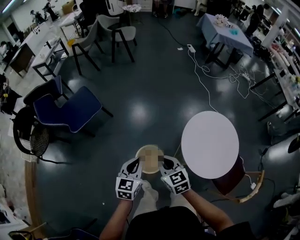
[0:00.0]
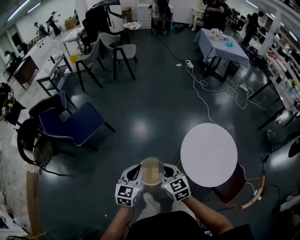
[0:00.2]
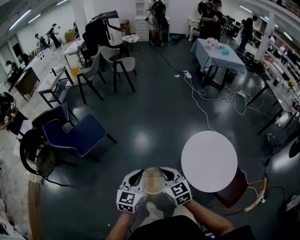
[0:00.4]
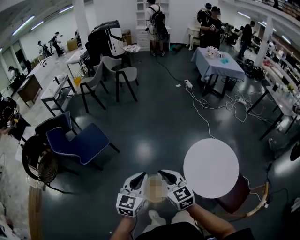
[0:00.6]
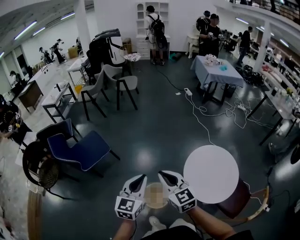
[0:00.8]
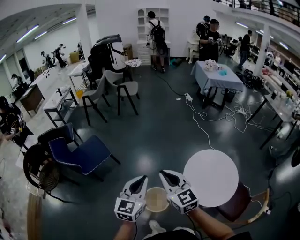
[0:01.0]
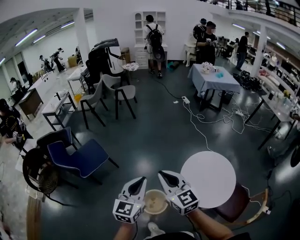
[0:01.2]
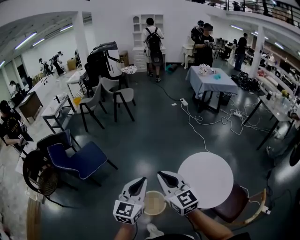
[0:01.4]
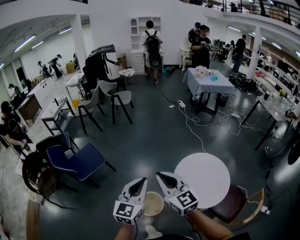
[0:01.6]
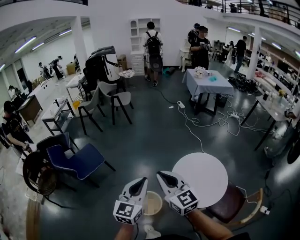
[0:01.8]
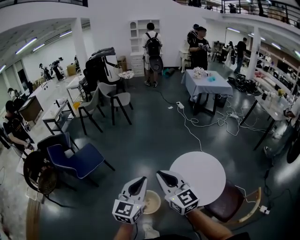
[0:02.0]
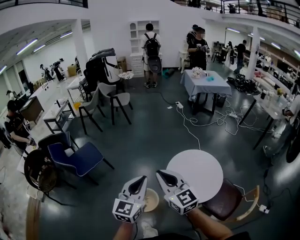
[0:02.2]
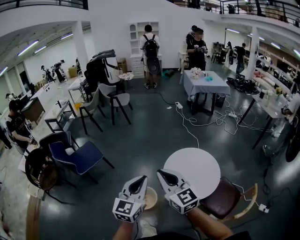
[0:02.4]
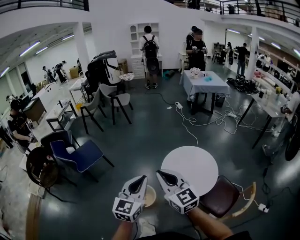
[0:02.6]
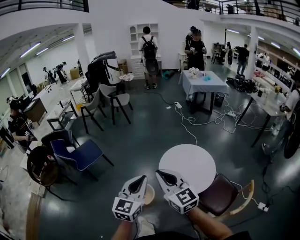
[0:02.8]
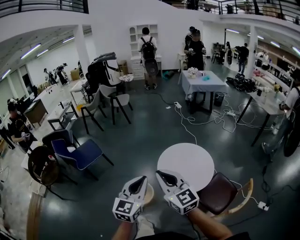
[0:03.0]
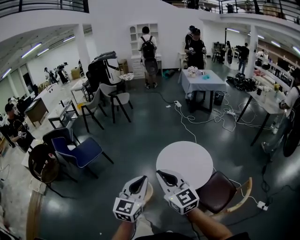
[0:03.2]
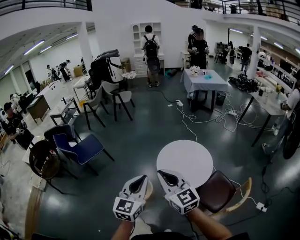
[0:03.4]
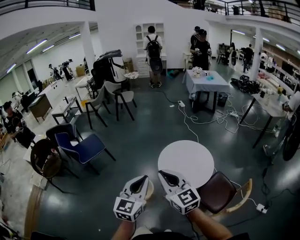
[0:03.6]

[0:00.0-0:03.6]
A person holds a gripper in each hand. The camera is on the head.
0:00.0 to 0:01.8: The left gripper is displaced upward and to the right by some 30 cm, and rotates about 30 degrees. Meanwhile the right gripper travels upward by about 30 cm, and points its fingers some 30 degrees further upward.
0:01.8 to 0:03.6: Both grippers travel together backward and to the right, some 30 cm.

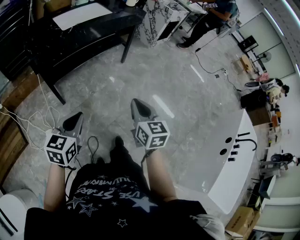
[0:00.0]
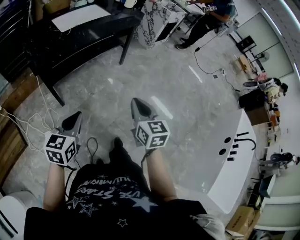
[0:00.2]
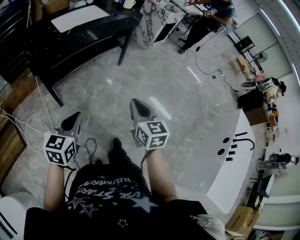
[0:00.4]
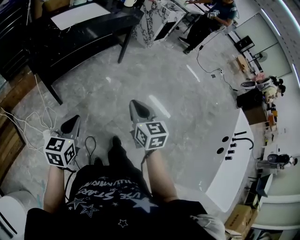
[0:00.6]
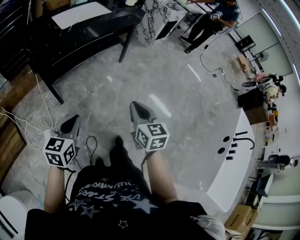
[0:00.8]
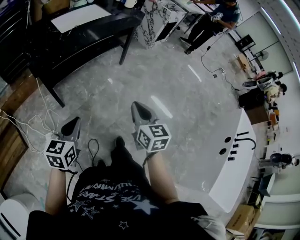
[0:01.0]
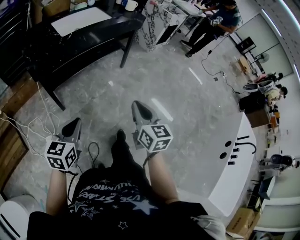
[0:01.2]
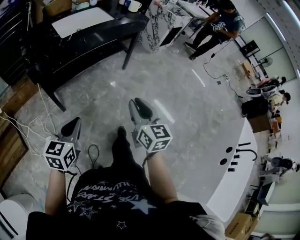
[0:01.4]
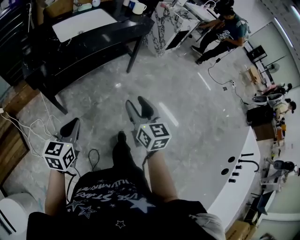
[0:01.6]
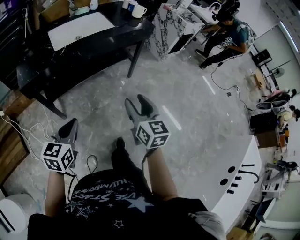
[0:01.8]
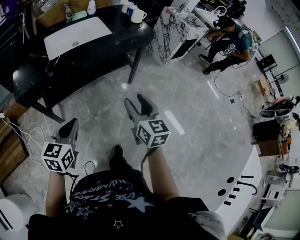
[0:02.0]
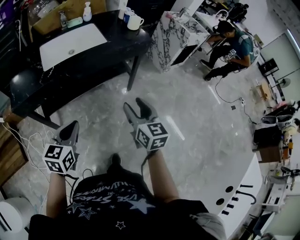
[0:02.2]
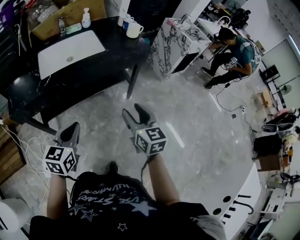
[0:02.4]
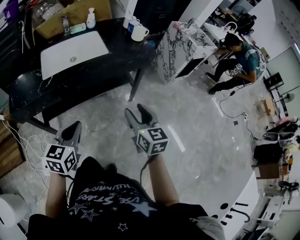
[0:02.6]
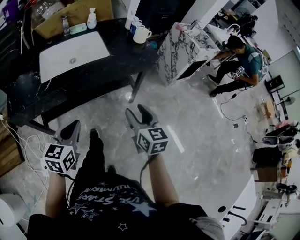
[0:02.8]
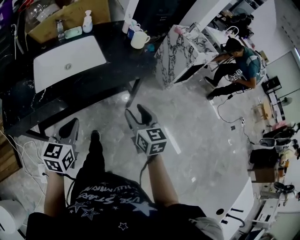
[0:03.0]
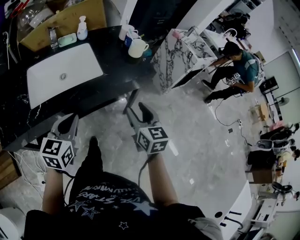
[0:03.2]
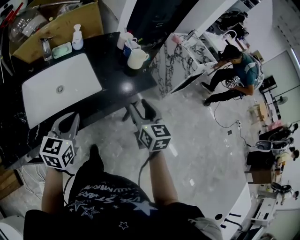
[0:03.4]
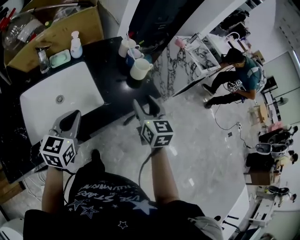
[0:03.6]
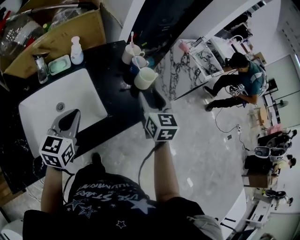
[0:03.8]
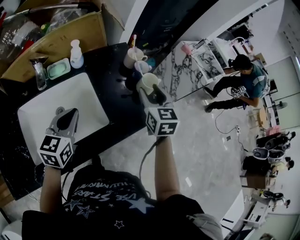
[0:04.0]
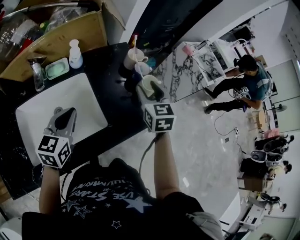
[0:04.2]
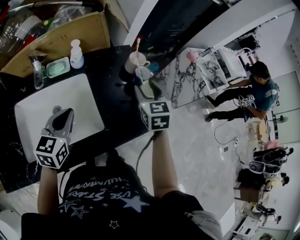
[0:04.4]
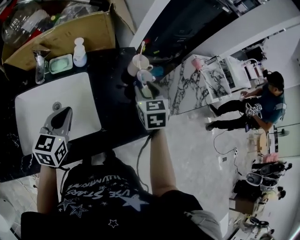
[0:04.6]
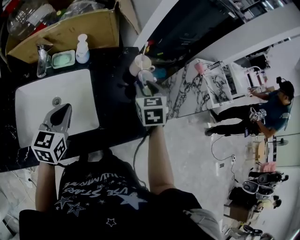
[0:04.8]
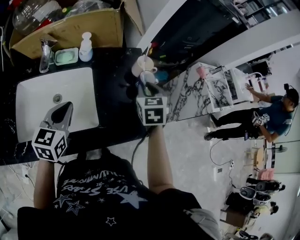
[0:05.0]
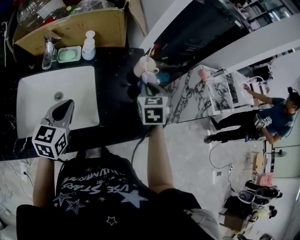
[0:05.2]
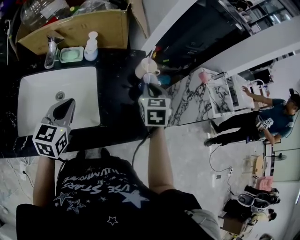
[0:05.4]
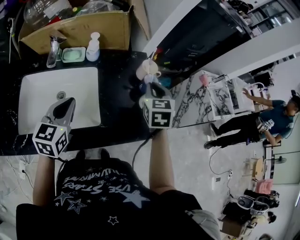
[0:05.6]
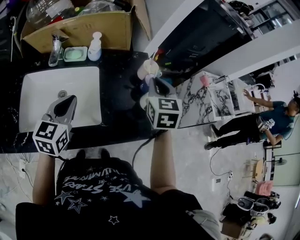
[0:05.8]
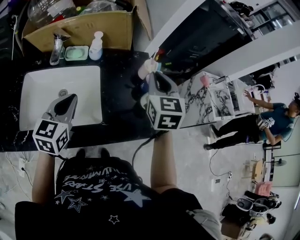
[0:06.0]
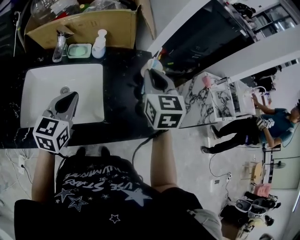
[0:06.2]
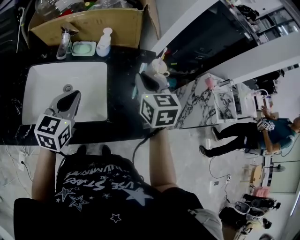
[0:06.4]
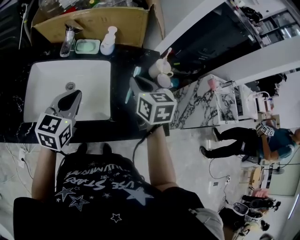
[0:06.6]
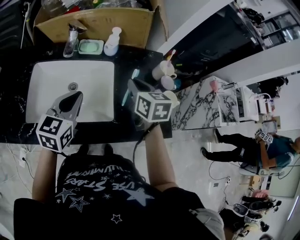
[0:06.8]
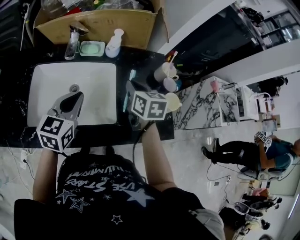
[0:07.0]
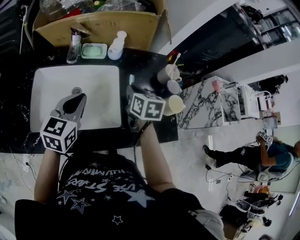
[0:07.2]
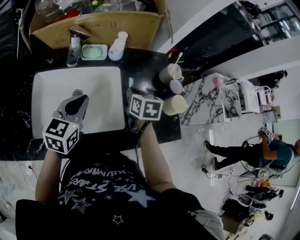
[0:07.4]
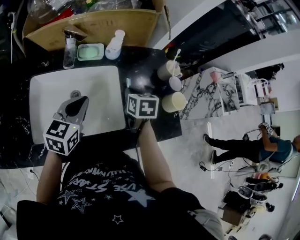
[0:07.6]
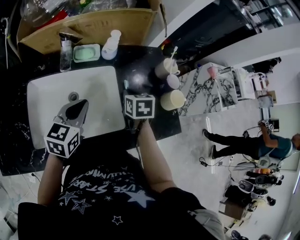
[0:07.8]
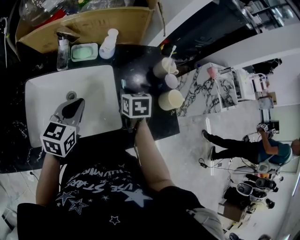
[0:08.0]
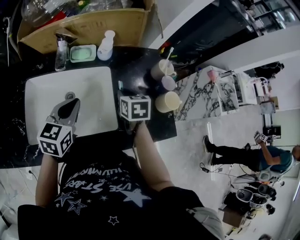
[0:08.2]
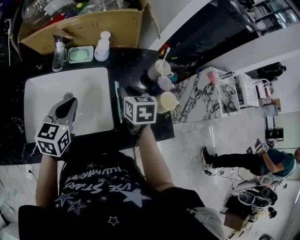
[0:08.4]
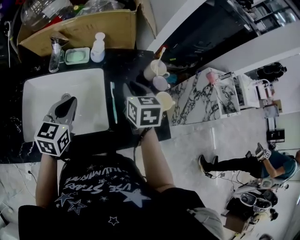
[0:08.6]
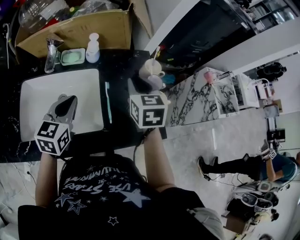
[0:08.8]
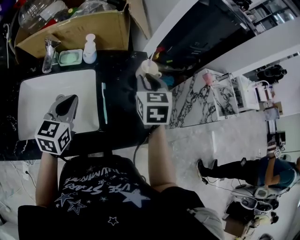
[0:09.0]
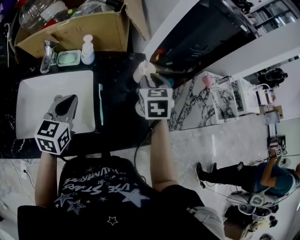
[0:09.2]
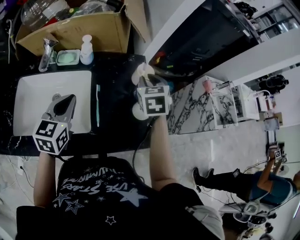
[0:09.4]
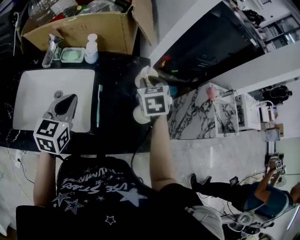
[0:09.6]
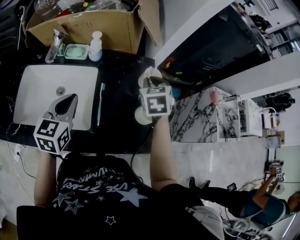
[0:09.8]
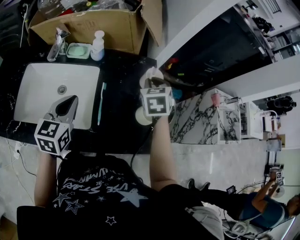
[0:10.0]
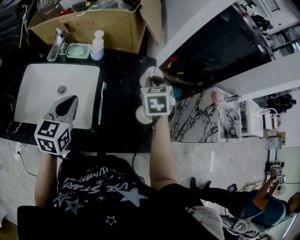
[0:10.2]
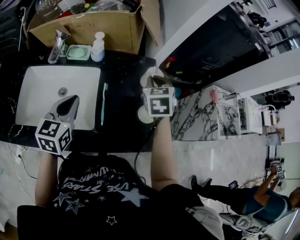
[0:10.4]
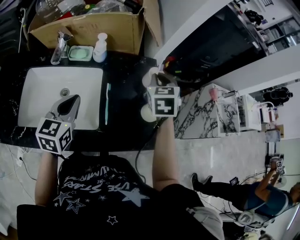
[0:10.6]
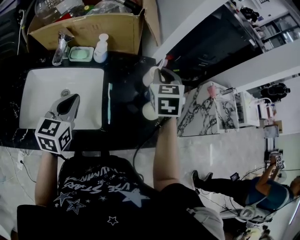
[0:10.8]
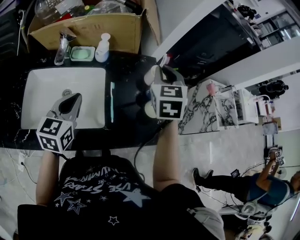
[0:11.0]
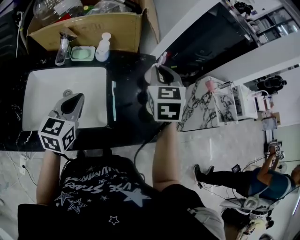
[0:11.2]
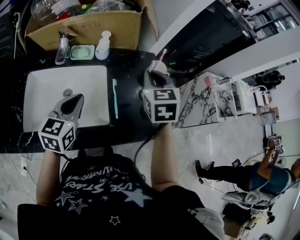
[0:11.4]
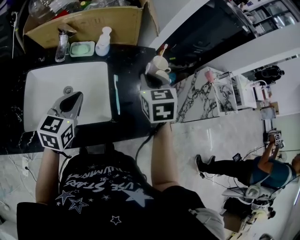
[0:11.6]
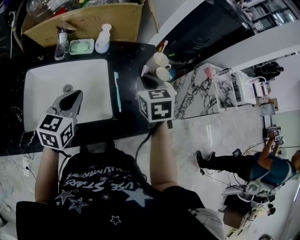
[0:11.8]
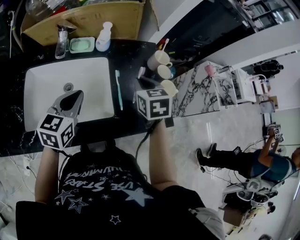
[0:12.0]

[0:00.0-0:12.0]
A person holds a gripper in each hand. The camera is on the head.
0:00.0 to 0:01.6: The two grippers go some 15 cm forward. The right gripper opens up.
0:01.6 to 0:03.0: The grippers both shift forward by approximately 35 cm.
0:03.0 to 0:04.4: The two grippers go approximately 40 cm forward. The right gripper swivels some 20 degrees.
0:04.4 to 0:06.0: The right gripper shifts about 10 cm upward, and closes its fingers.
0:06.0 to 0:07.6: The left gripper travels to the left by some 5 cm; the right gripper heads downward and to the left, covering approximately 25 cm, and turns by about 40 degrees.
0:07.6 to 0:09.0: The right gripper heads upward and to the right, covering roughly 20 cm, and turns by approximately 30 degrees; the left gripper shifts about 10 cm to the right.
0:09.0 to 0:10.4: The right gripper heads forward, covering about 5 cm.
0:10.4 to 0:12.0: The left gripper heads to the left, covering roughly 5 cm, while the right gripper moves backward and to the left, about 15 cm, and goes upward and returns, some 10 cm each way.

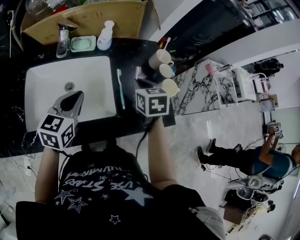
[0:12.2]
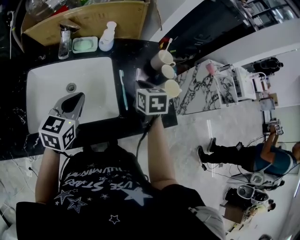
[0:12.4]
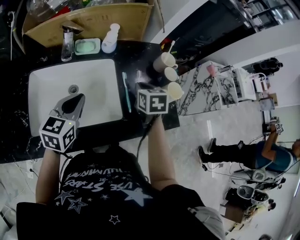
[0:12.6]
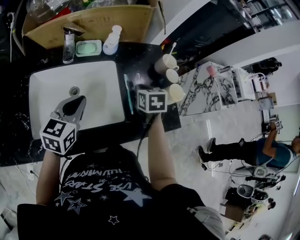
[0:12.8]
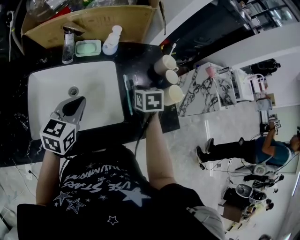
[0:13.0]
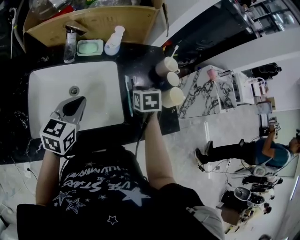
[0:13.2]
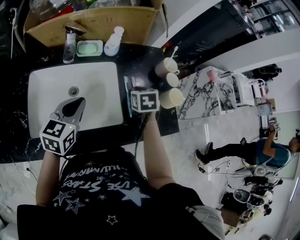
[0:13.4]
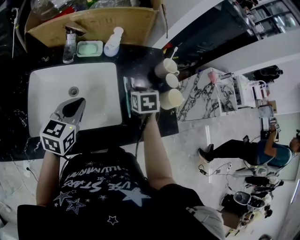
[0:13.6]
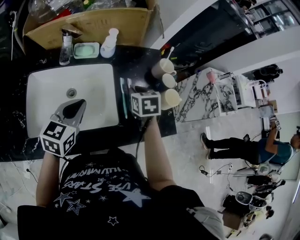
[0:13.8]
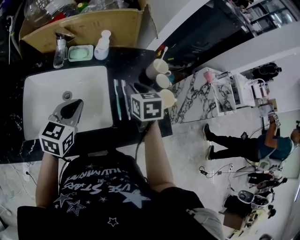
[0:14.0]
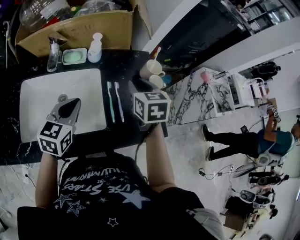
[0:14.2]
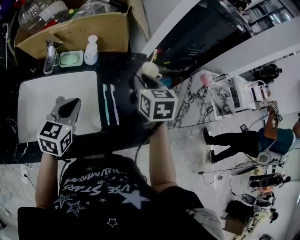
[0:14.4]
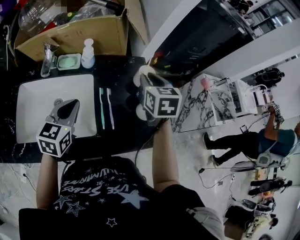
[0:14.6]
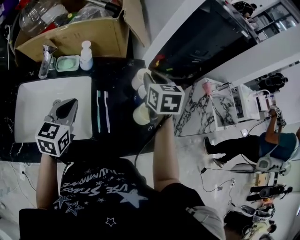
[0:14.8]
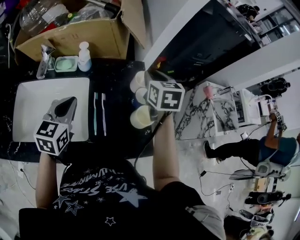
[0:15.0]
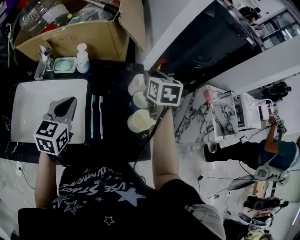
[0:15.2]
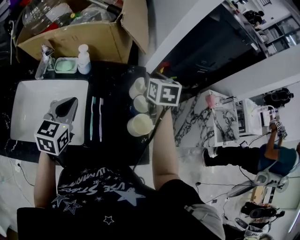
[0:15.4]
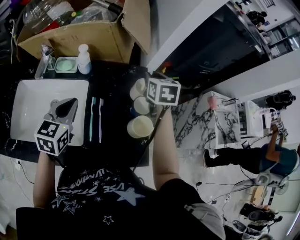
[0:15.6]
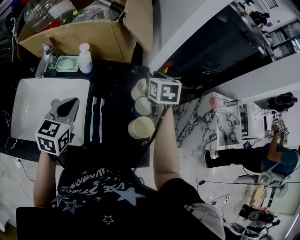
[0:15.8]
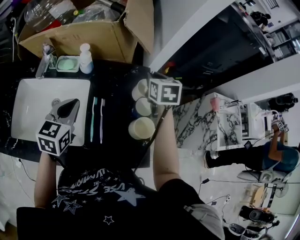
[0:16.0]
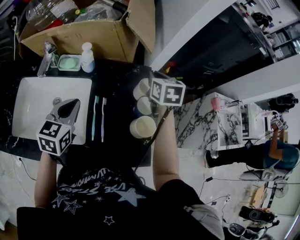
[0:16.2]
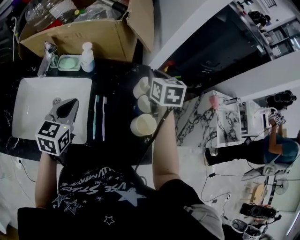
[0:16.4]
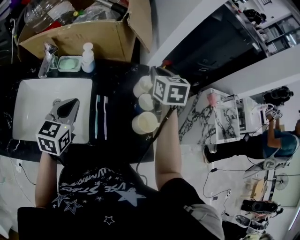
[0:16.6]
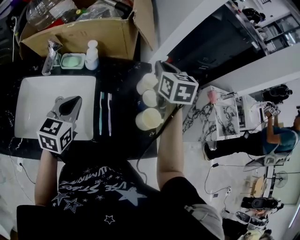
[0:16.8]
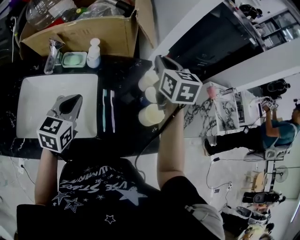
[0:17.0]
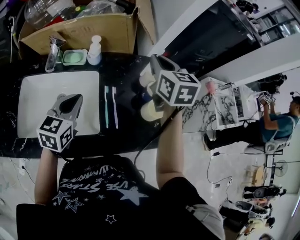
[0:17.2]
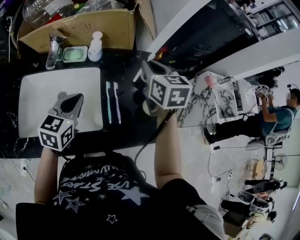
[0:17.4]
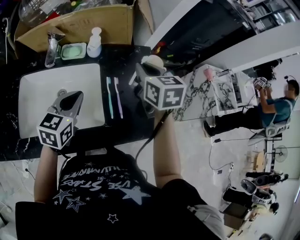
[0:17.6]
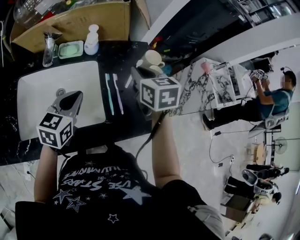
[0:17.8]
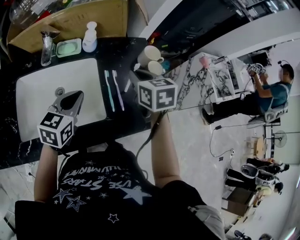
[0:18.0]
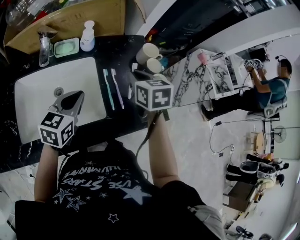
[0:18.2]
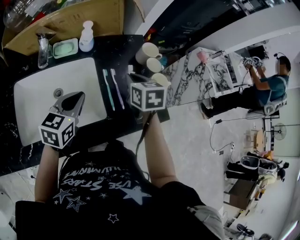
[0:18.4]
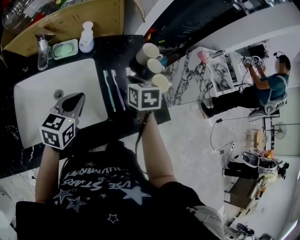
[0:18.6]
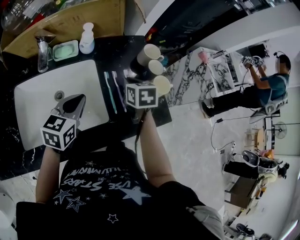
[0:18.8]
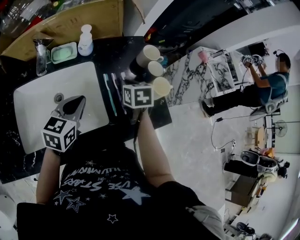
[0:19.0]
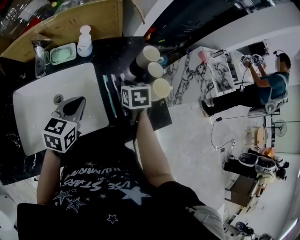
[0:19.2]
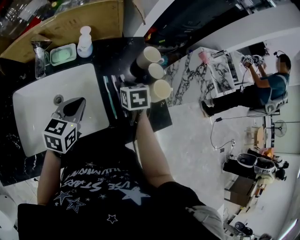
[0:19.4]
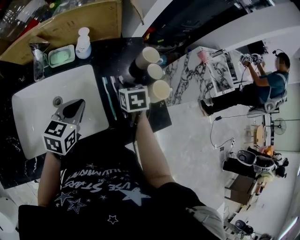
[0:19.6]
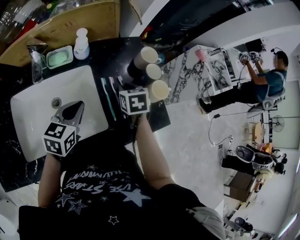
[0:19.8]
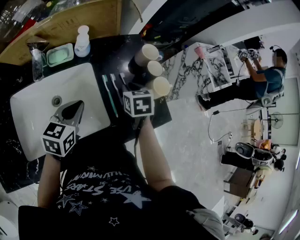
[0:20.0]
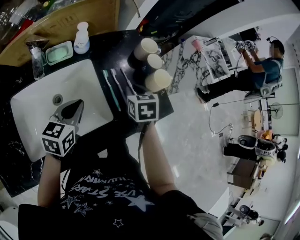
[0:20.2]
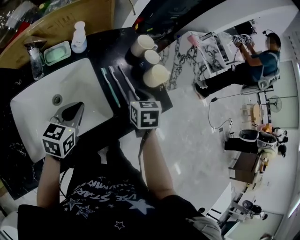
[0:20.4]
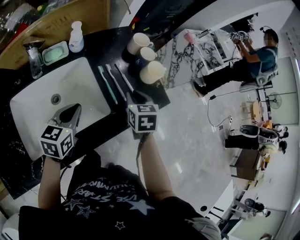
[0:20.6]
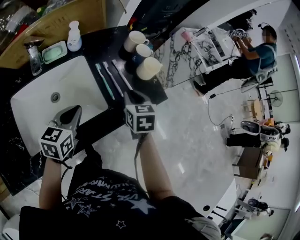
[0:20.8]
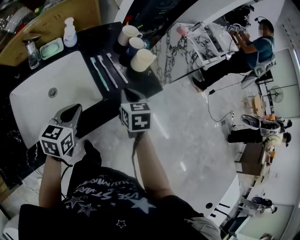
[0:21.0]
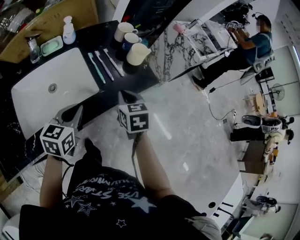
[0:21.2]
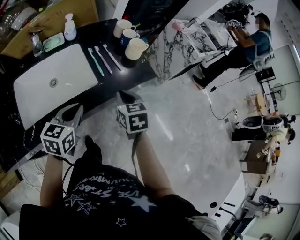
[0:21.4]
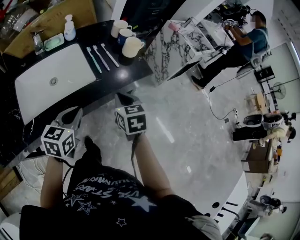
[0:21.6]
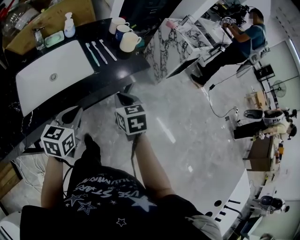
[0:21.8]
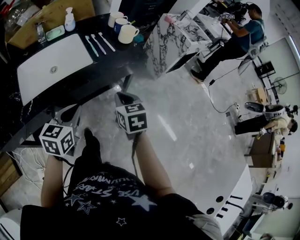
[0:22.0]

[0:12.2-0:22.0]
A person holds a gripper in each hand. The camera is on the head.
0:12.2 to 0:13.6: The right gripper goes some 5 cm downward.
0:13.6 to 0:15.0: The right gripper heads upward, to the right and forward, covering some 25 cm, and rotates approximately 20 degrees; the left gripper heads to the right and forward, covering some 10 cm.
0:15.0 to 0:16.4: The right gripper shifts approximately 5 cm forward.
0:16.4 to 0:17.8: The right gripper is displaced backward and to the left by approximately 20 cm. The left gripper goes some 5 cm backward.
0:17.8 to 0:19.2: The right gripper heads downward, covering roughly 15 cm, and changes its angle by about 20 degrees.
0:19.2 to 0:20.6: The right gripper shifts about 10 cm backward and to the right. Meanwhile the left gripper travels backward by roughly 5 cm.
0:20.6 to 0:22.0: The left gripper is displaced backward and to the right by about 25 cm, while the right gripper travels backward by some 25 cm.
